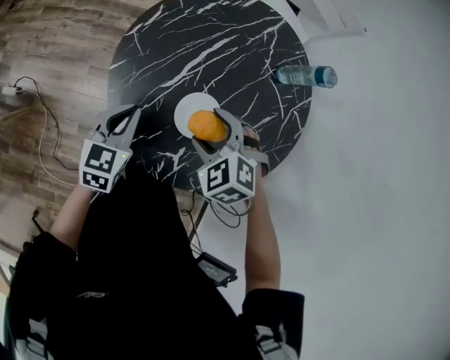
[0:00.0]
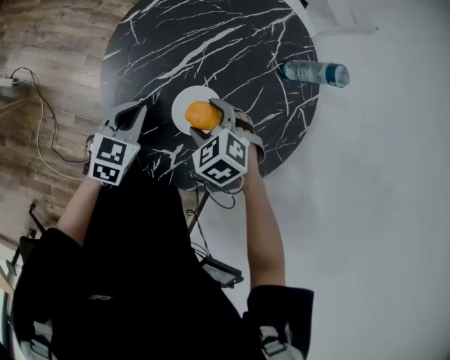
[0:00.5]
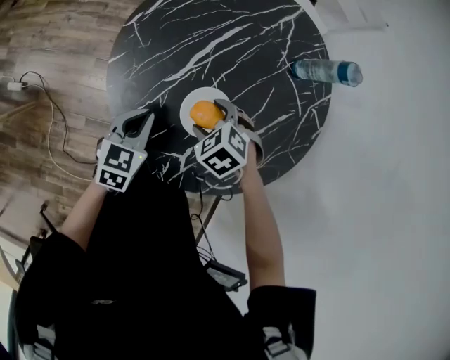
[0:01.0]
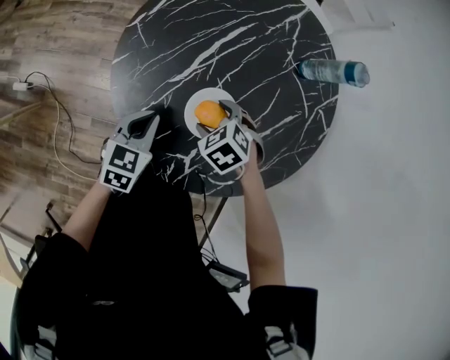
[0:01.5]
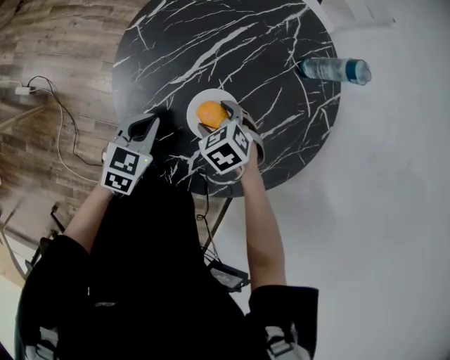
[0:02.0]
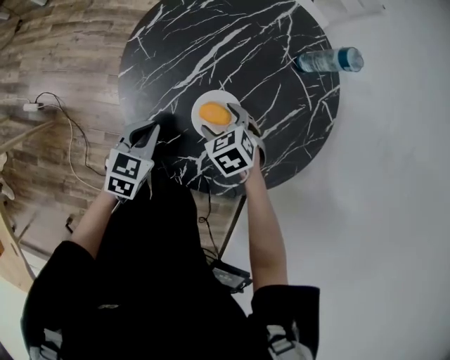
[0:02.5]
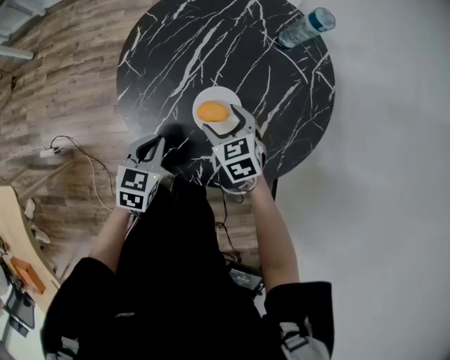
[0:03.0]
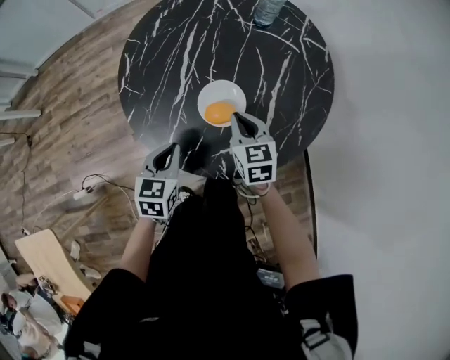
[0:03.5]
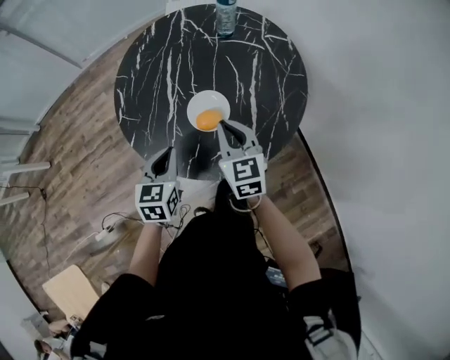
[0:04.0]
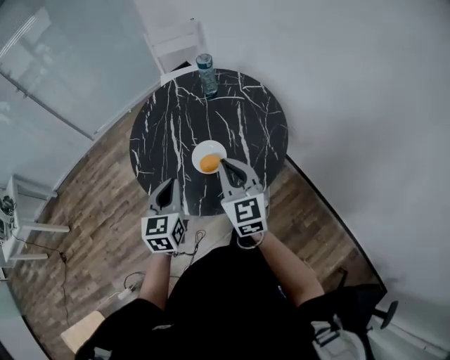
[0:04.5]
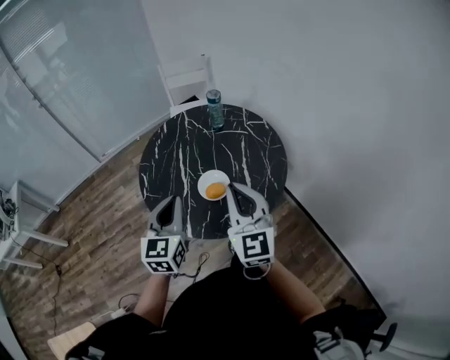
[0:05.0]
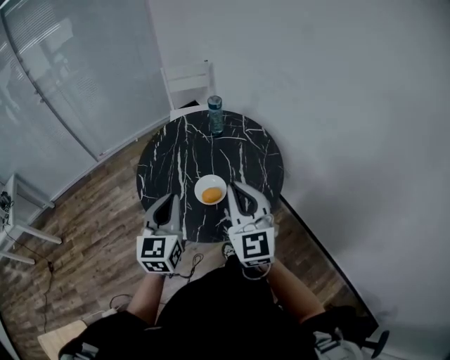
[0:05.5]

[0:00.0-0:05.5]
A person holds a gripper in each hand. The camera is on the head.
0:00.0 to 0:02.0: The left gripper shifts roughly 10 cm downward. Meanwhile the right gripper goes approximately 15 cm downward, and rotates approximately 20 degrees.
0:02.0 to 0:03.5: The left gripper moves roughly 5 cm; the right gripper goes some 10 cm upward, points its fingers approximately 40 degrees further upward, and closes.
0:03.5 to 0:05.5: The right gripper moves upward and backward, about 35 cm, and tilts its fingers some 40 degrees upward. Meanwhile the left gripper heads upward, covering approximately 30 cm, and points its fingers roughly 30 degrees further upward.

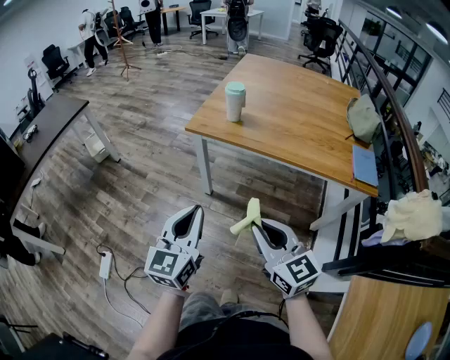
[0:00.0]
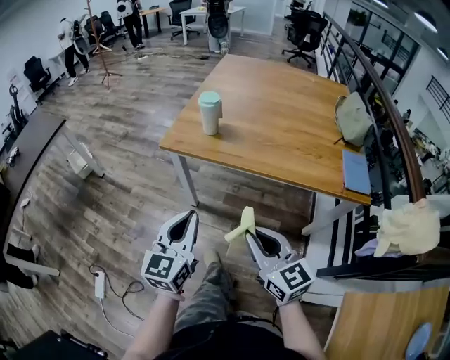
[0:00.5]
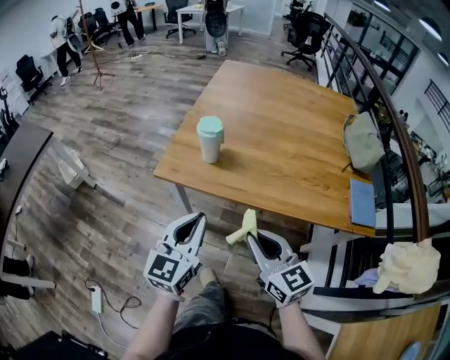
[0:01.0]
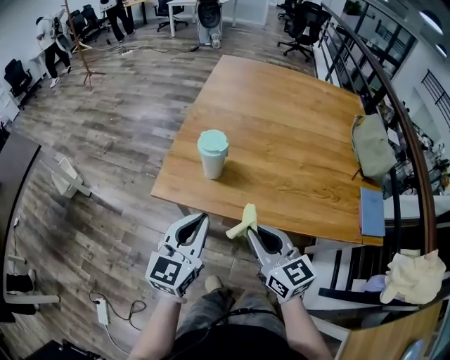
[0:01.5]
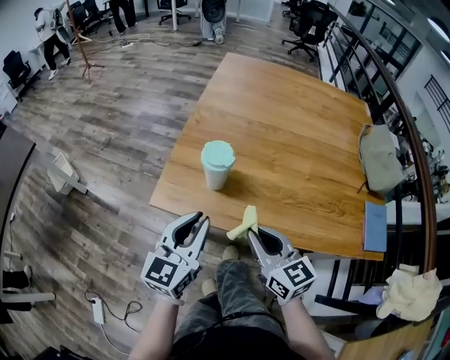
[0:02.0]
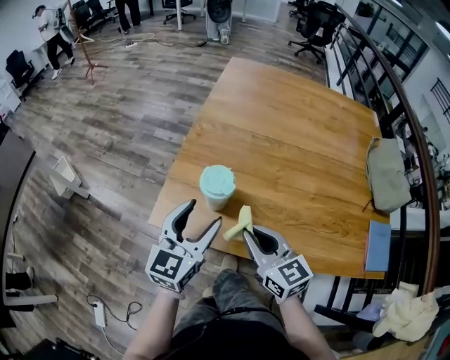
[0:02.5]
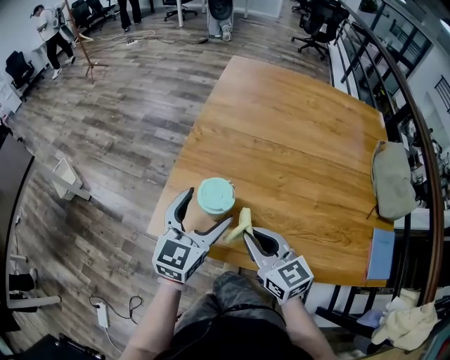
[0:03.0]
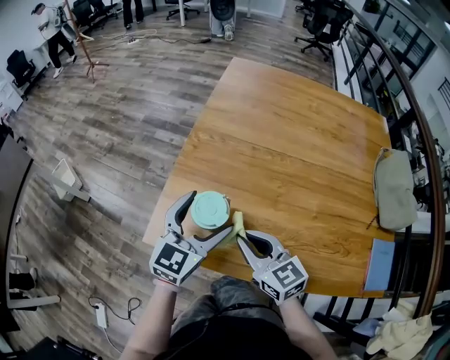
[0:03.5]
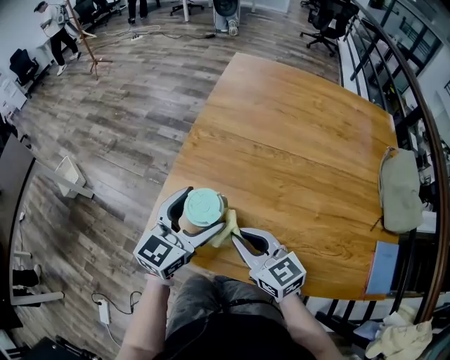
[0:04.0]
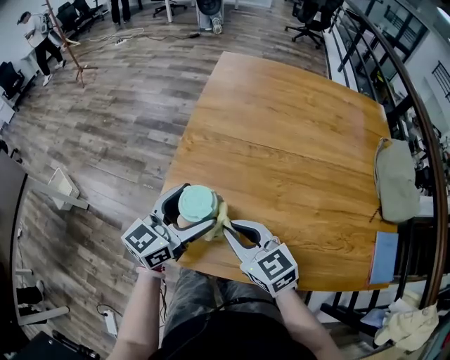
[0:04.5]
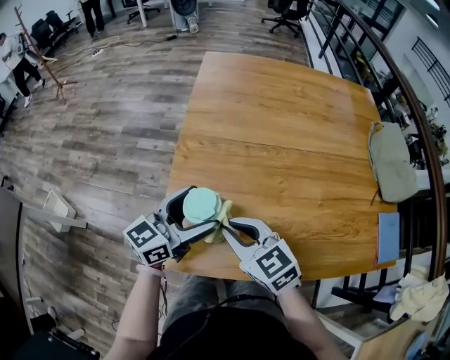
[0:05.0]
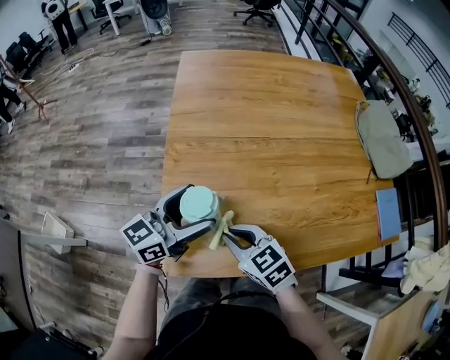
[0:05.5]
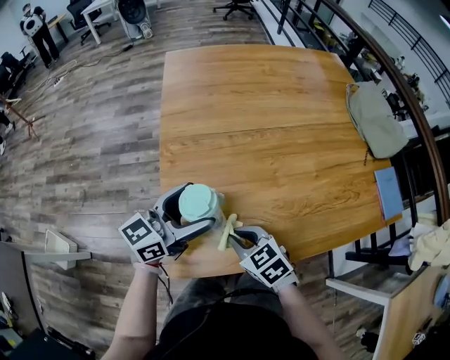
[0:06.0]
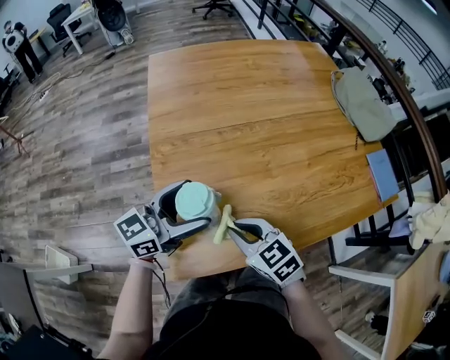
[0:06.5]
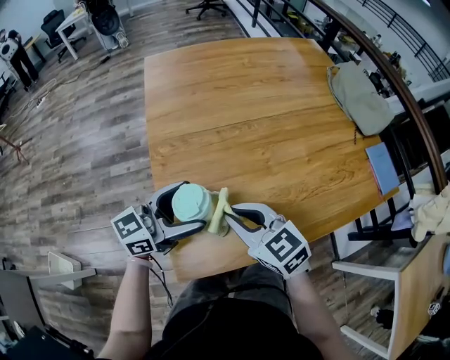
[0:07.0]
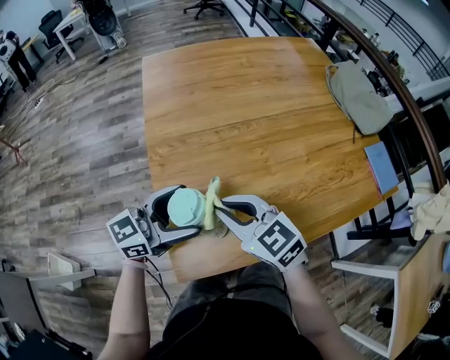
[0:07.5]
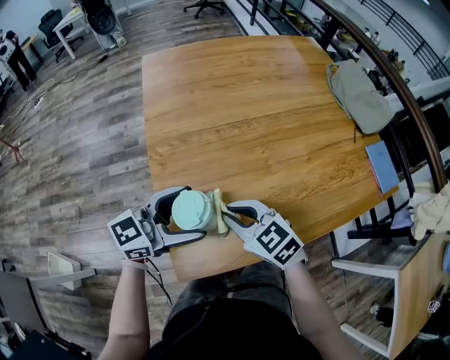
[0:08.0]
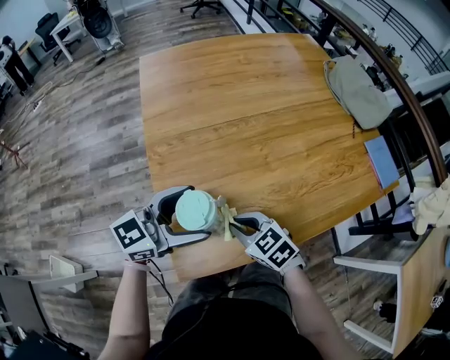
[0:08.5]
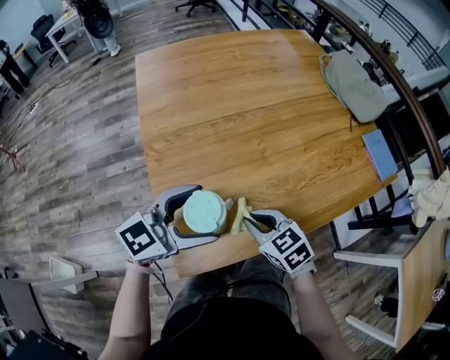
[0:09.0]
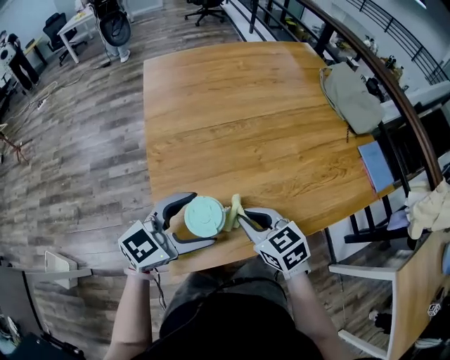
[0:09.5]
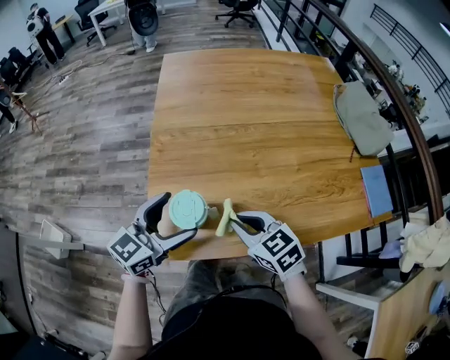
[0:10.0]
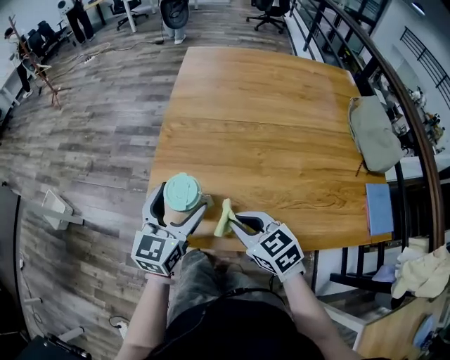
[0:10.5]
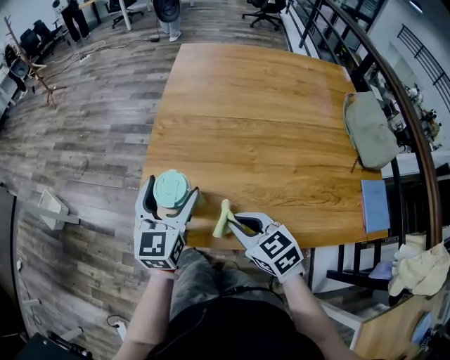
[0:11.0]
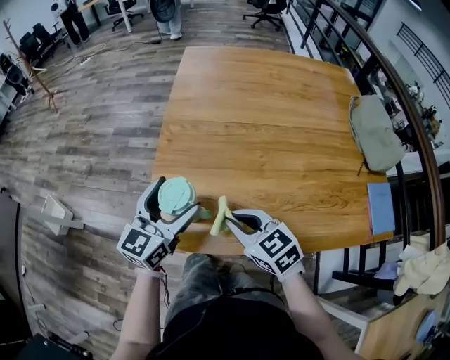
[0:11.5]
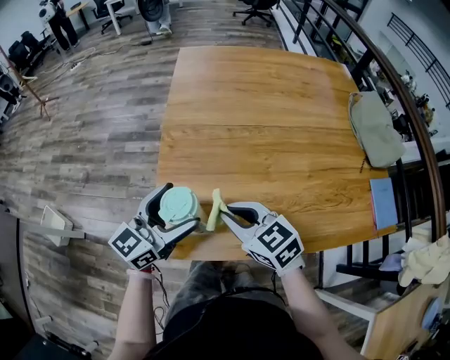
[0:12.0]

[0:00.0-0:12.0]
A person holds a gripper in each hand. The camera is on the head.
0:00.0 to 0:02.0: Both grippers move forward, approximately 35 cm.
0:02.0 to 0:04.0: Both grippers travel together forward, roughly 15 cm. The left gripper opens its fingers.
0:04.0 to 0:06.0: The right gripper moves downward, about 10 cm, and changes its angle by roughly 30 degrees. The left gripper moves approximately 5 cm, and turns by some 40 degrees.
0:06.0 to 0:08.0: The right gripper is displaced upward by roughly 5 cm; the left gripper changes its angle by about 20 degrees.
0:08.0 to 0:10.0: The left gripper ends up roughly 5 cm from where it was, and changes its angle by some 30 degrees. The right gripper travels to the right by approximately 10 cm.
0:10.0 to 0:12.0: The right gripper shifts by roughly 5 cm.

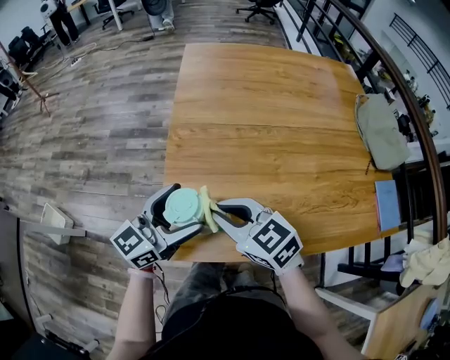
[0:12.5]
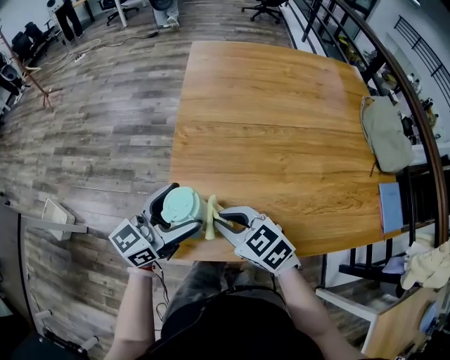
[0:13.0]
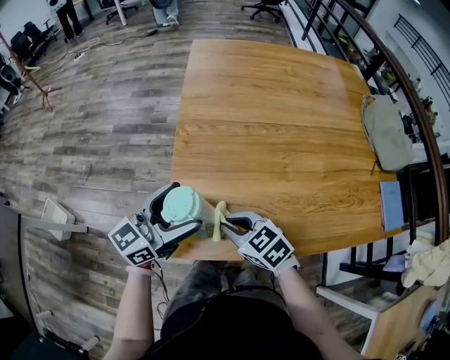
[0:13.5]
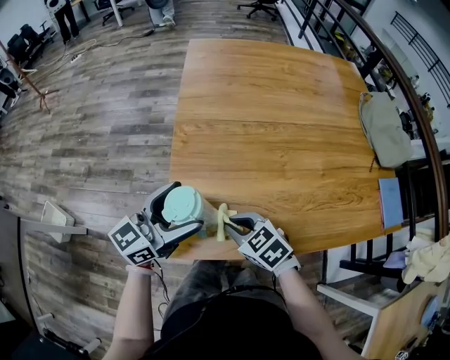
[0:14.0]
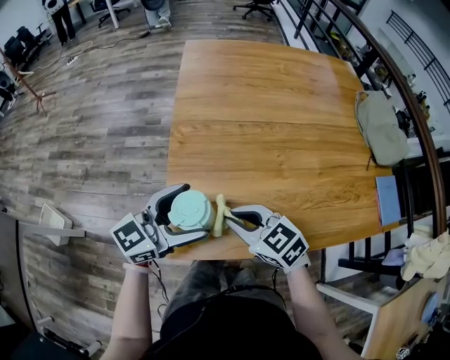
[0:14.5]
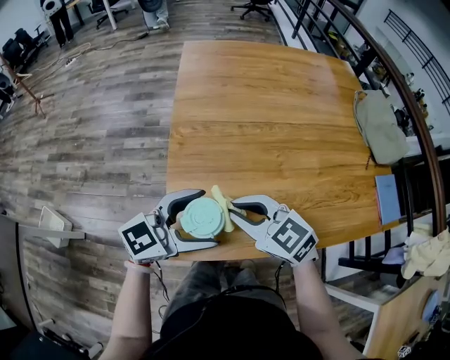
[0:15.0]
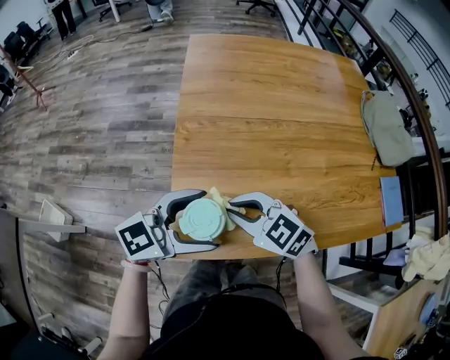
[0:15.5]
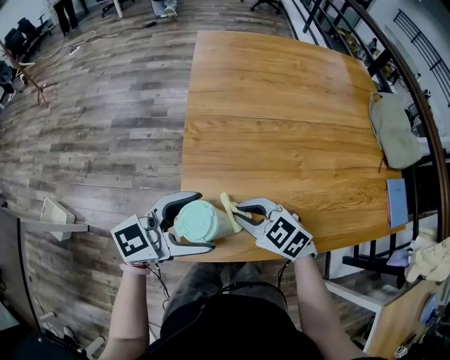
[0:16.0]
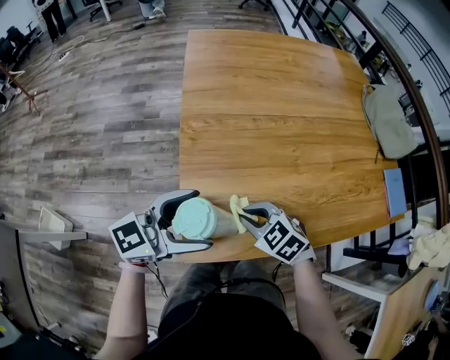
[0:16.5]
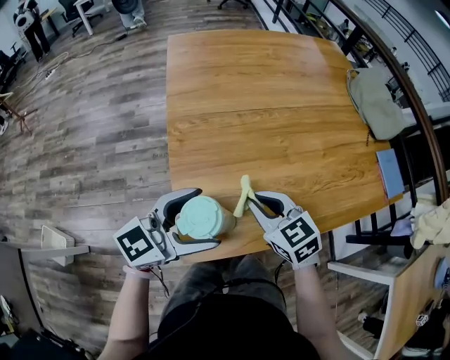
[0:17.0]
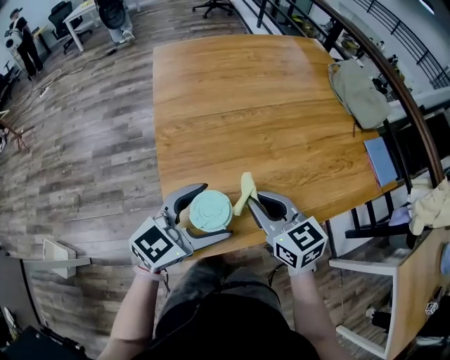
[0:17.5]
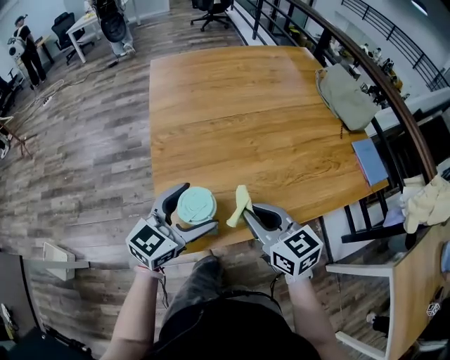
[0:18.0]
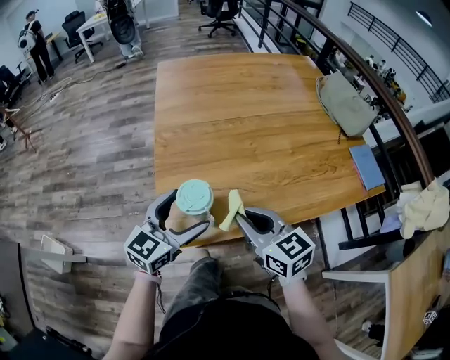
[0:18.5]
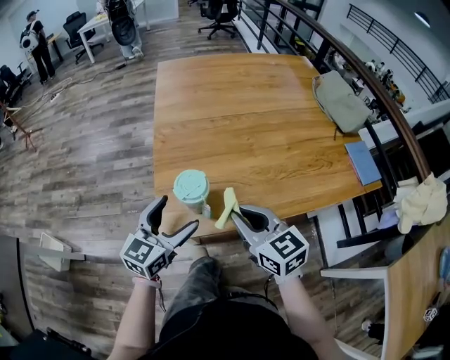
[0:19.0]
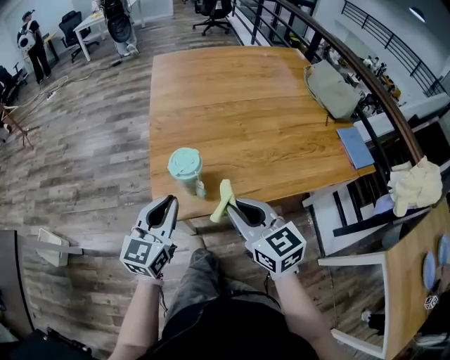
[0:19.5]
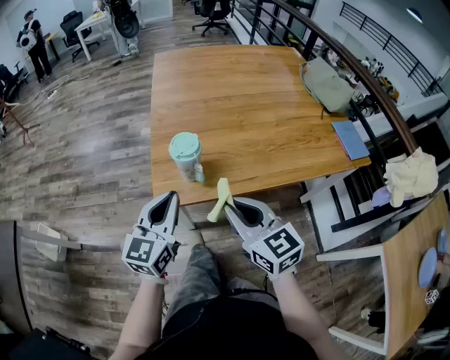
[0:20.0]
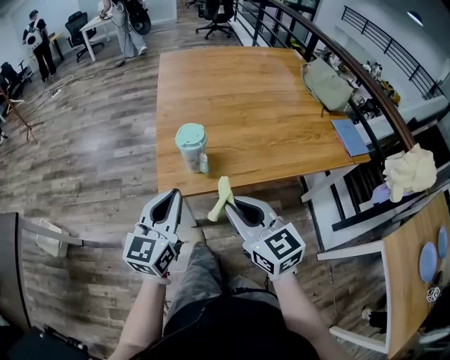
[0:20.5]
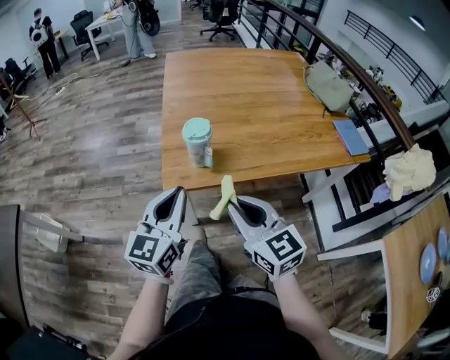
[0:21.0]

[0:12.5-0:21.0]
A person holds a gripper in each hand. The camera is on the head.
0:12.5 to 0:14.5: The right gripper goes roughly 5 cm downward.
0:14.5 to 0:16.5: The right gripper goes about 5 cm downward.
0:16.5 to 0:19.0: The left gripper ends up about 5 cm from where it was, and changes its angle by about 30 degrees. The right gripper moves upward, about 15 cm, and tips its fingers upward by some 30 degrees.
0:19.0 to 0:21.0: The right gripper travels backward by roughly 15 cm, while the left gripper heads backward and upward, covering about 15 cm, and closes.

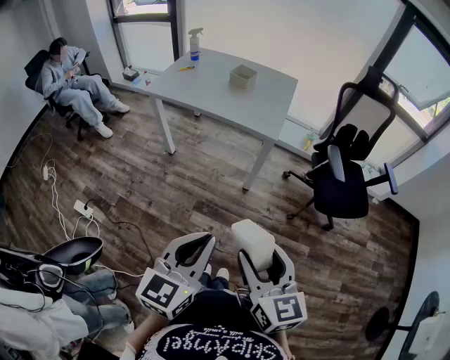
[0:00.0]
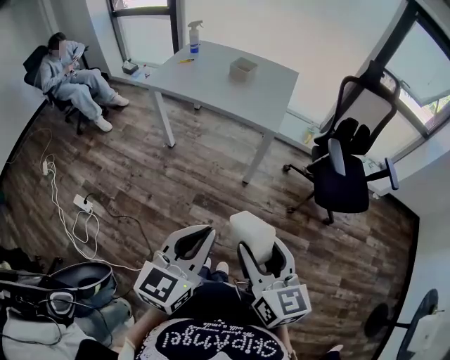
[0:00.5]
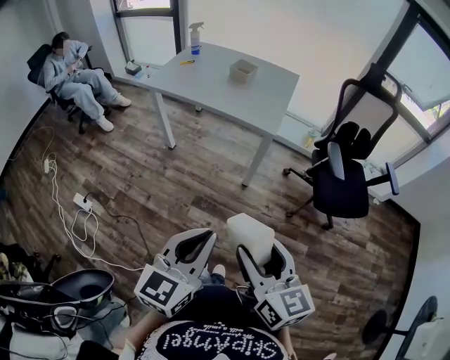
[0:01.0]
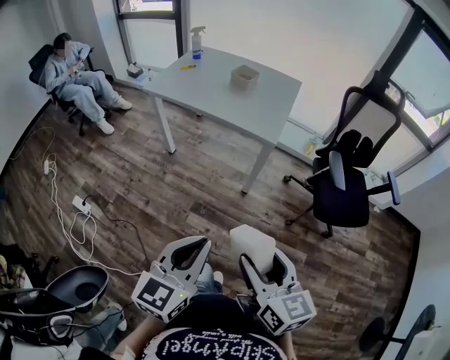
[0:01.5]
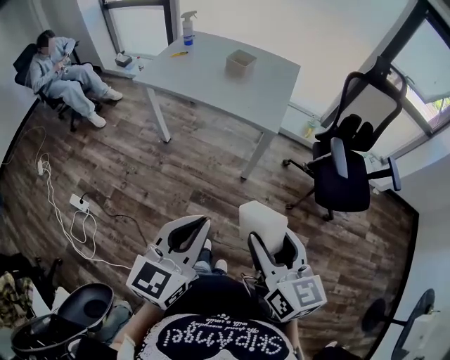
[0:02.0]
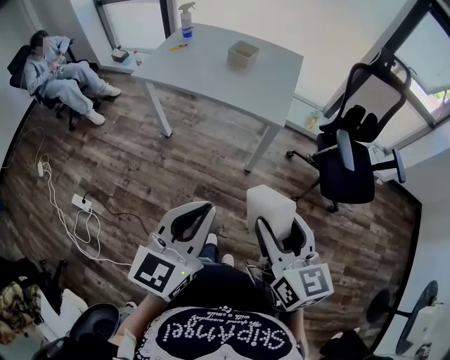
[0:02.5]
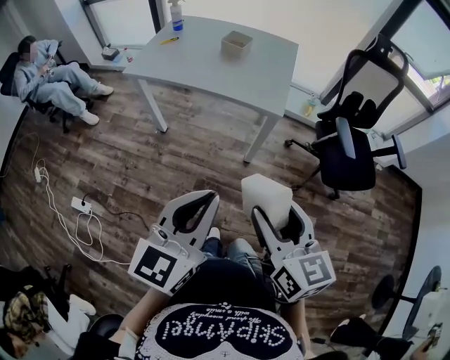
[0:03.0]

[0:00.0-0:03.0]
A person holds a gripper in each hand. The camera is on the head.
0:00.0 to 0:01.5: The grippers move only a little.
0:01.5 to 0:03.0: The two grippers go some 10 cm forward and to the left.
